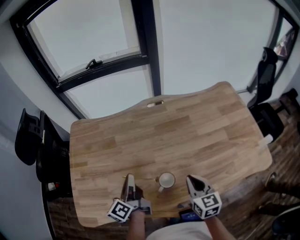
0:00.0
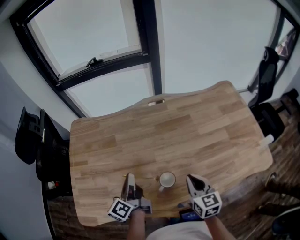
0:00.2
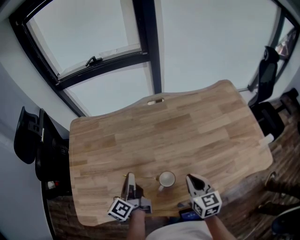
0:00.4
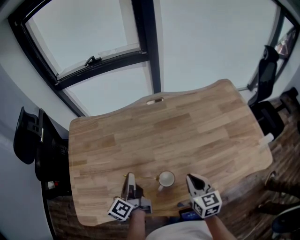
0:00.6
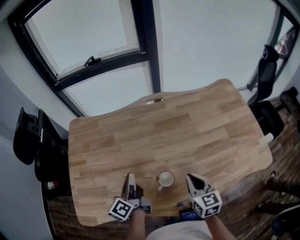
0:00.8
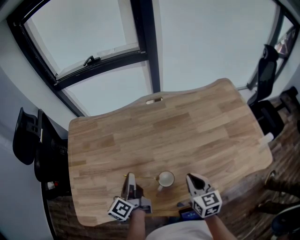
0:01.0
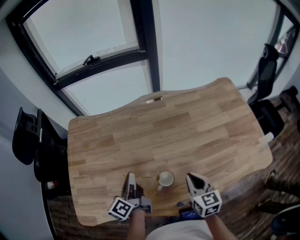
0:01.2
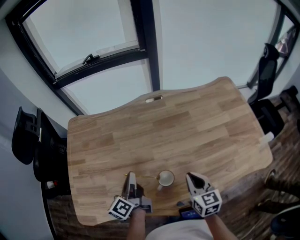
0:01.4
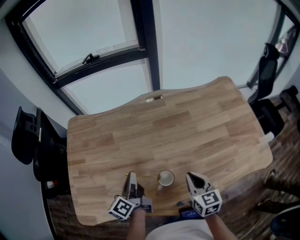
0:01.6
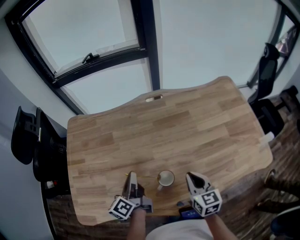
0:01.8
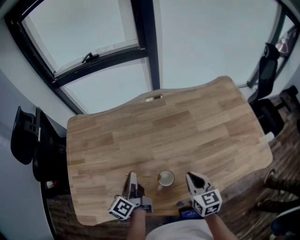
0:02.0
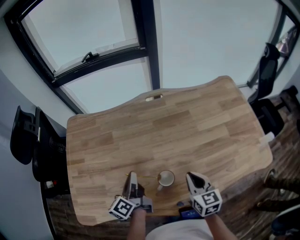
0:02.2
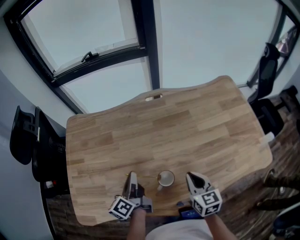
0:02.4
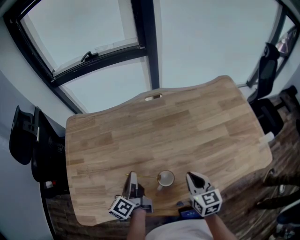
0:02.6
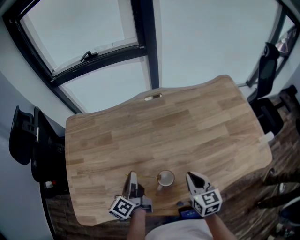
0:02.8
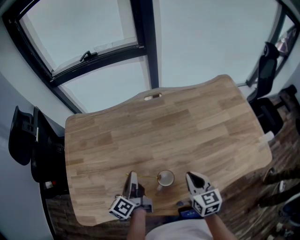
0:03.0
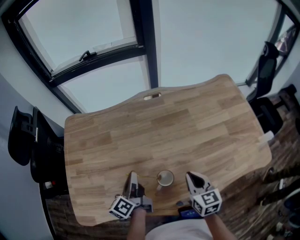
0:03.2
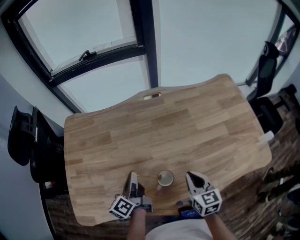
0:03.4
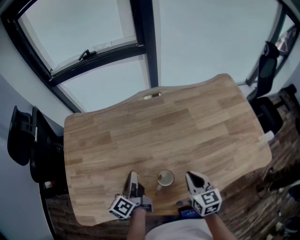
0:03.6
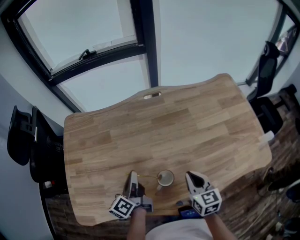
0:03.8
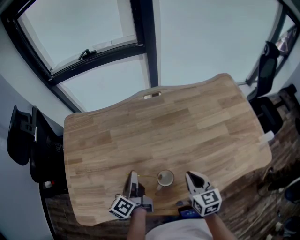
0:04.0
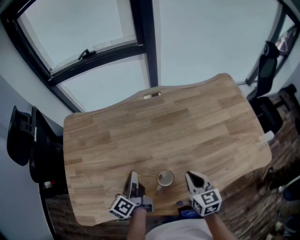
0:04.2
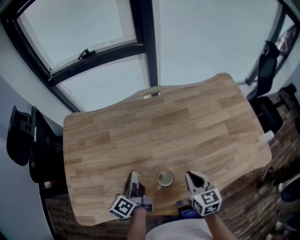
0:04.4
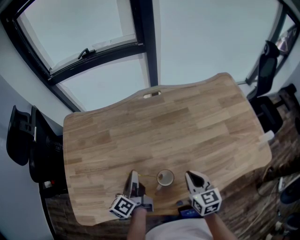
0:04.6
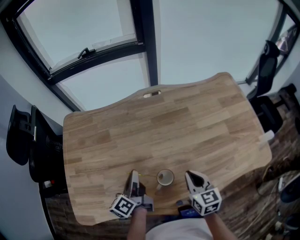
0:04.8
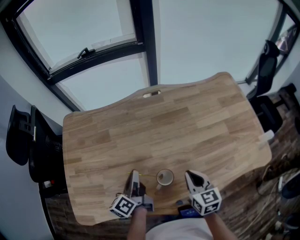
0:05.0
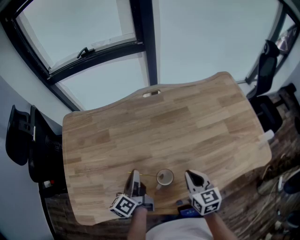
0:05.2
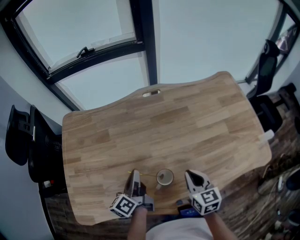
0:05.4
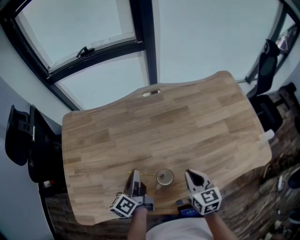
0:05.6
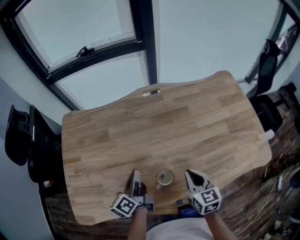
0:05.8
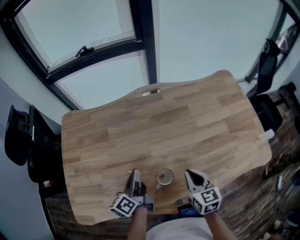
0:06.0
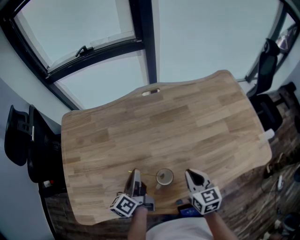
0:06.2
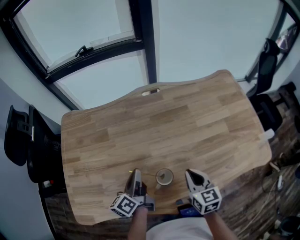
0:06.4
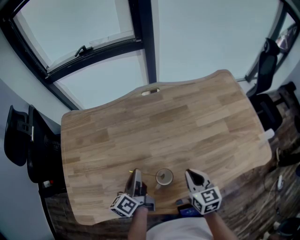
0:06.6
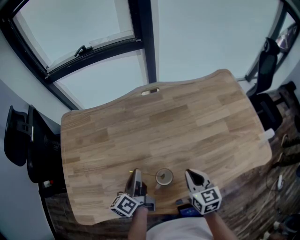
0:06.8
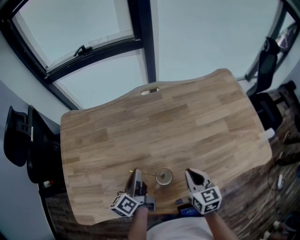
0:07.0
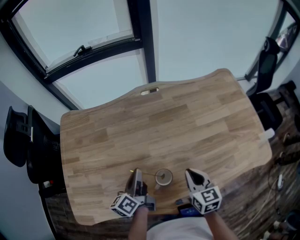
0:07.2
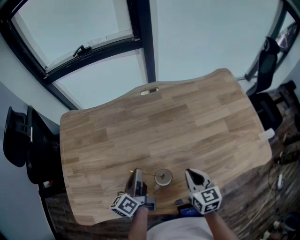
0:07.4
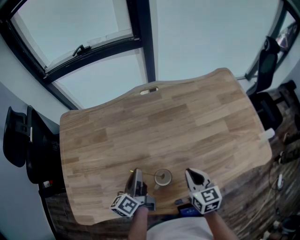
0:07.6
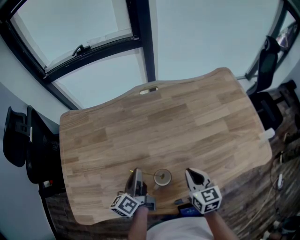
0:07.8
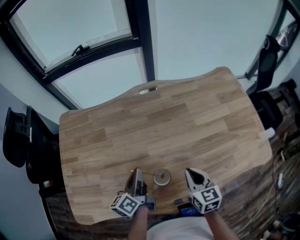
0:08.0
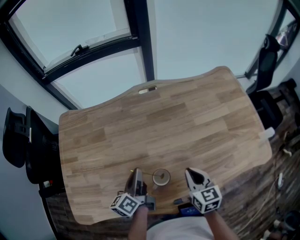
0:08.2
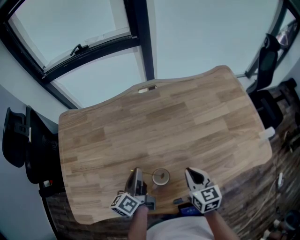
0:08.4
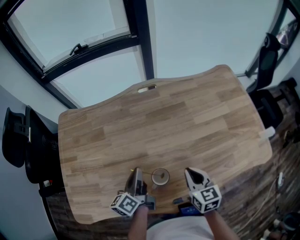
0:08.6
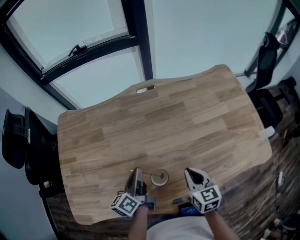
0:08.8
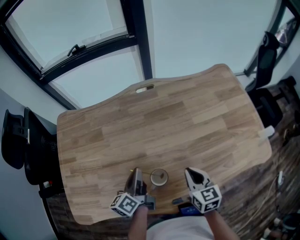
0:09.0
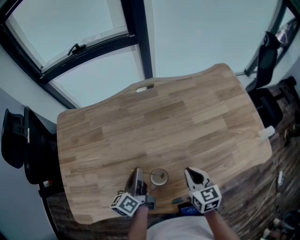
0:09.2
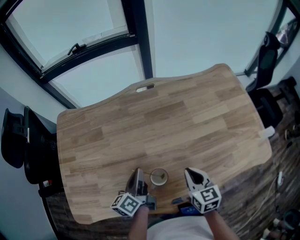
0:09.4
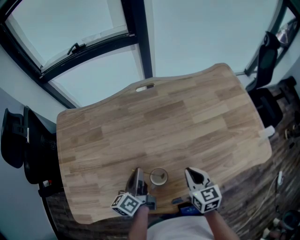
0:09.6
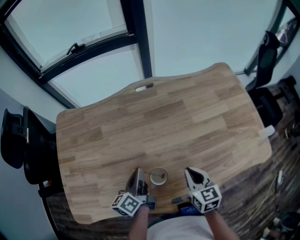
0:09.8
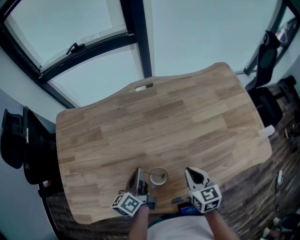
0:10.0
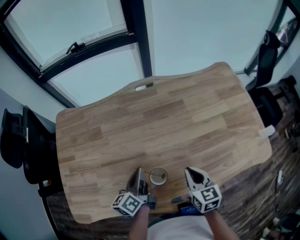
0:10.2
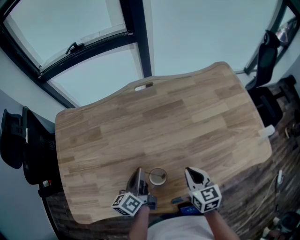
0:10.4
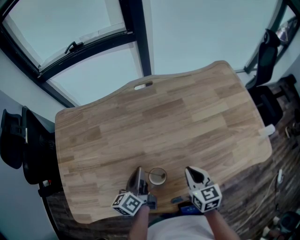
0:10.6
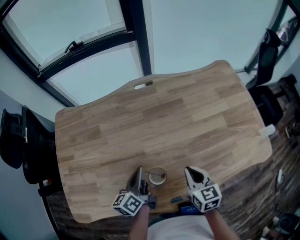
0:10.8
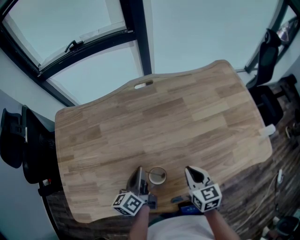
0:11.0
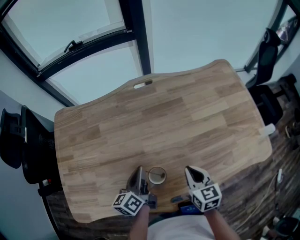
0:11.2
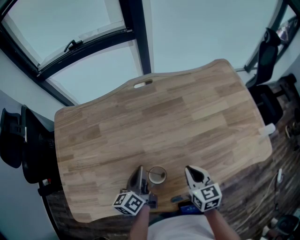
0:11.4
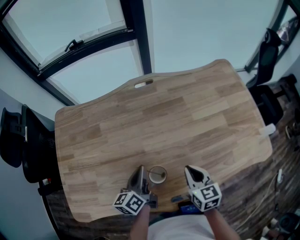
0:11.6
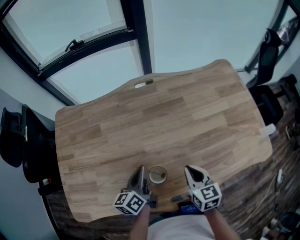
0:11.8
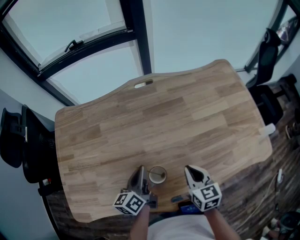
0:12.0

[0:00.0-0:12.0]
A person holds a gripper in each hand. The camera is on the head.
0:00.0 to 0:03.0: The grippers move only a little.
0:03.0 to 0:04.4: Both grippers stay about where they are.
0:04.4 to 0:09.0: The grippers make only small movements.
0:09.0 to 0:12.0: There are only small adjustments of the grippers.

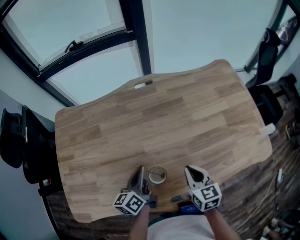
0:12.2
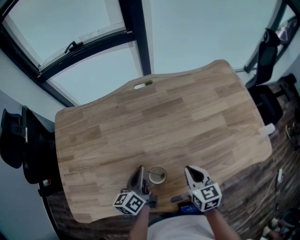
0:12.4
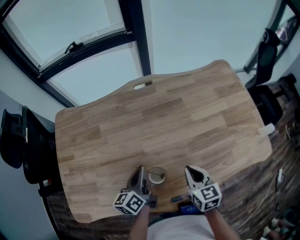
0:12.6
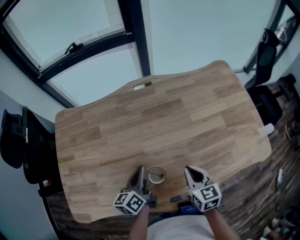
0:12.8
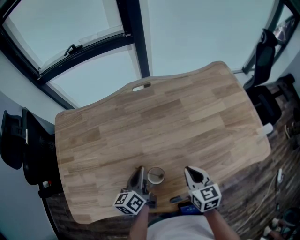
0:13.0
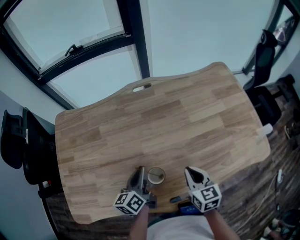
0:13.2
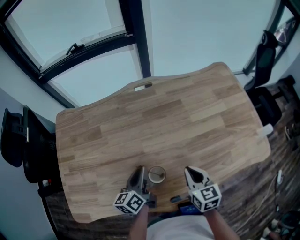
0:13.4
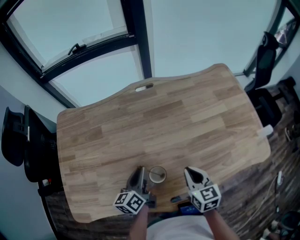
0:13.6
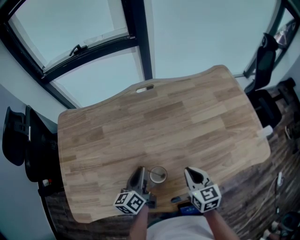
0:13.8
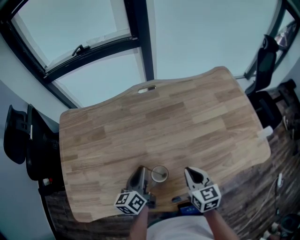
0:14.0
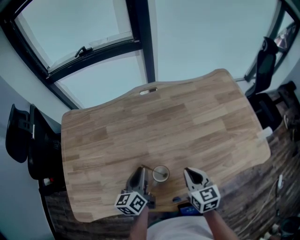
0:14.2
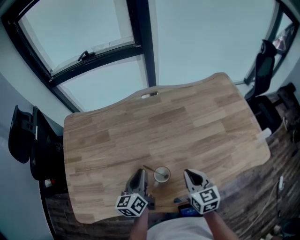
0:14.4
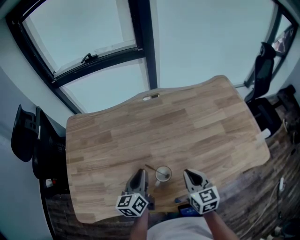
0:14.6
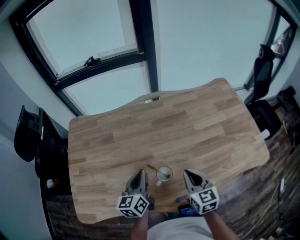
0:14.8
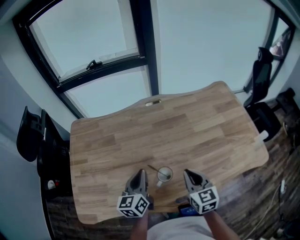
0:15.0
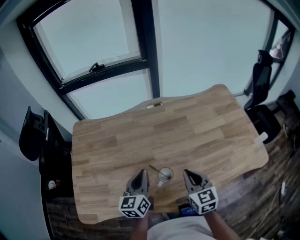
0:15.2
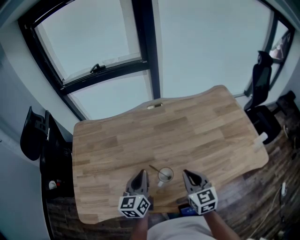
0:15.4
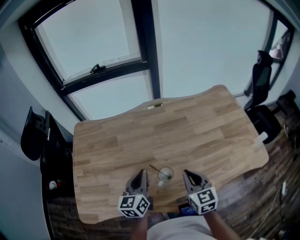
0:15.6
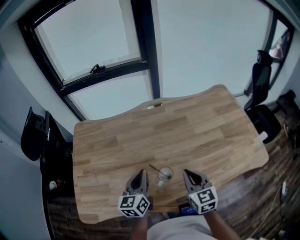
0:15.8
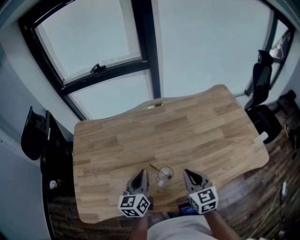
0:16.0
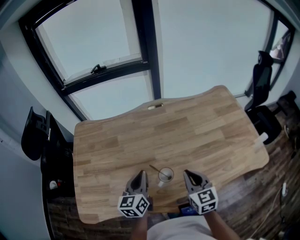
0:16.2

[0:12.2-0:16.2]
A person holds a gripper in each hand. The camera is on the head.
0:12.2 to 0:13.6: Both grippers stay put.
0:13.6 to 0:14.8: The left gripper moves upward, some 5 cm, while the right gripper shifts by about 5 cm.
0:14.8 to 0:16.2: There are only small adjustments of the grippers.

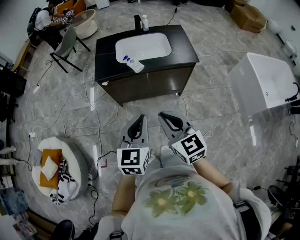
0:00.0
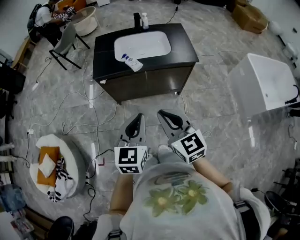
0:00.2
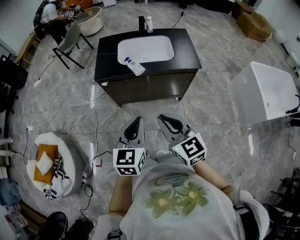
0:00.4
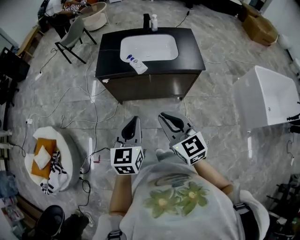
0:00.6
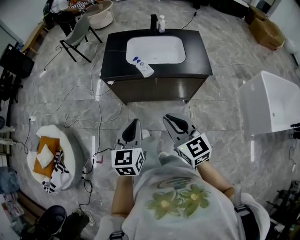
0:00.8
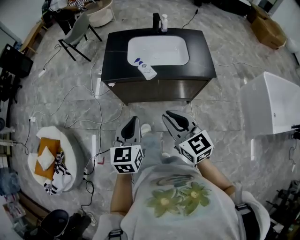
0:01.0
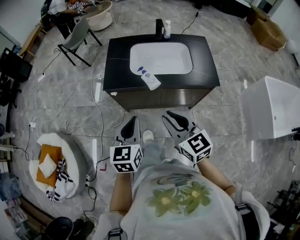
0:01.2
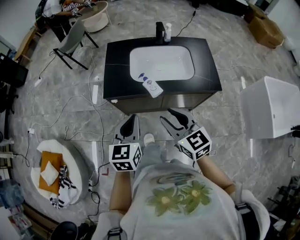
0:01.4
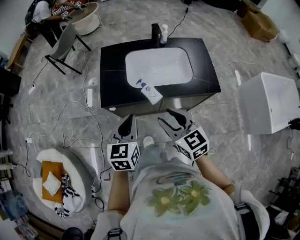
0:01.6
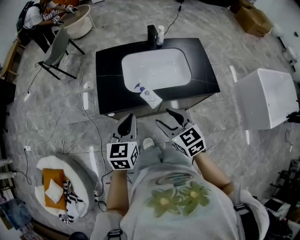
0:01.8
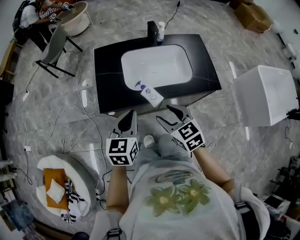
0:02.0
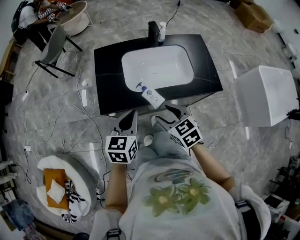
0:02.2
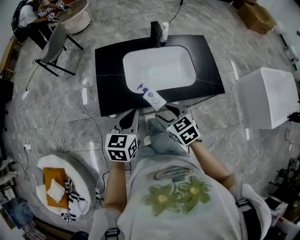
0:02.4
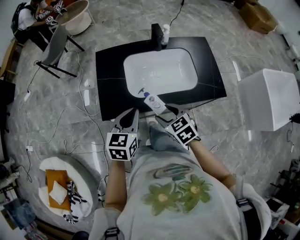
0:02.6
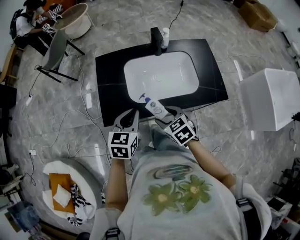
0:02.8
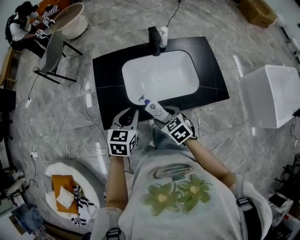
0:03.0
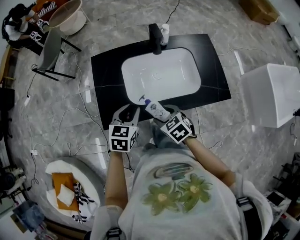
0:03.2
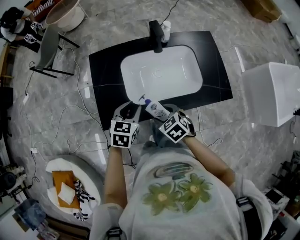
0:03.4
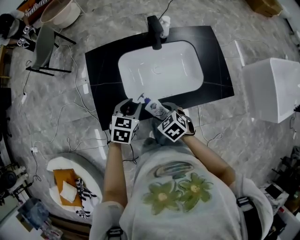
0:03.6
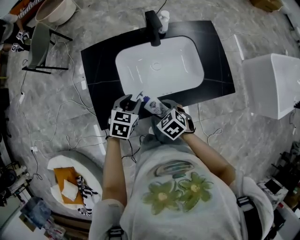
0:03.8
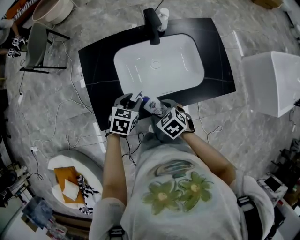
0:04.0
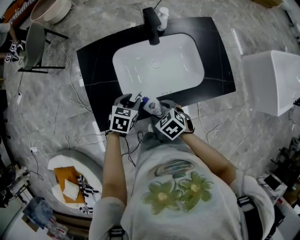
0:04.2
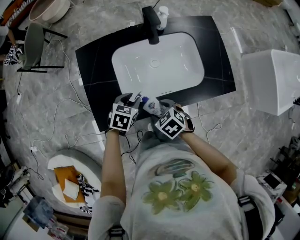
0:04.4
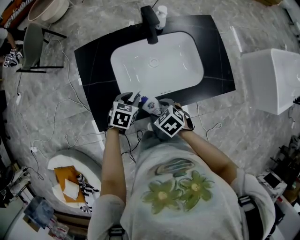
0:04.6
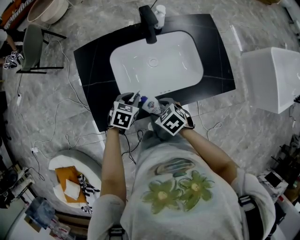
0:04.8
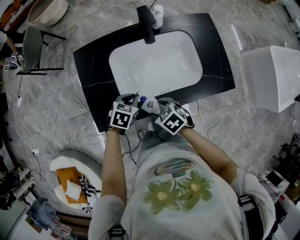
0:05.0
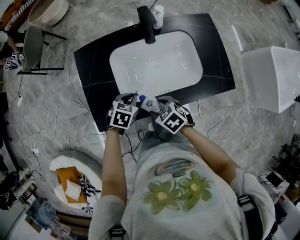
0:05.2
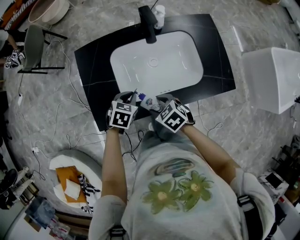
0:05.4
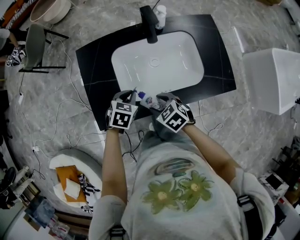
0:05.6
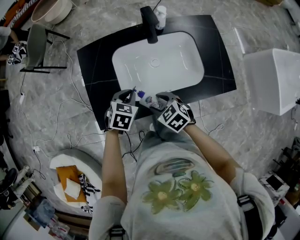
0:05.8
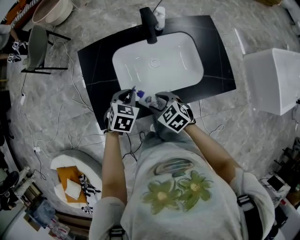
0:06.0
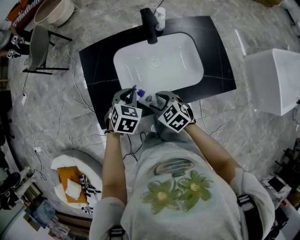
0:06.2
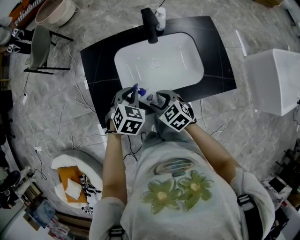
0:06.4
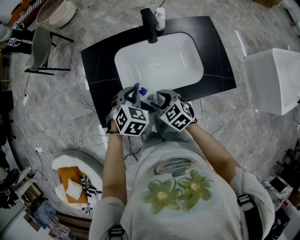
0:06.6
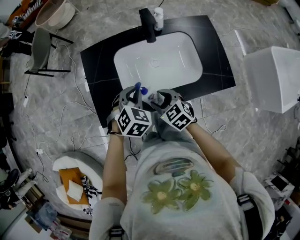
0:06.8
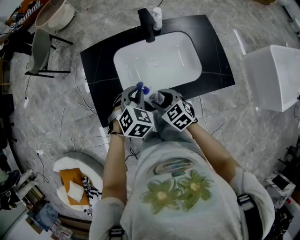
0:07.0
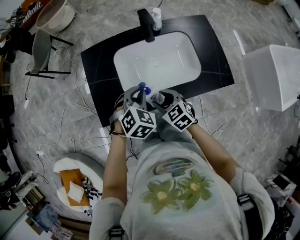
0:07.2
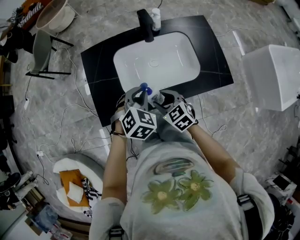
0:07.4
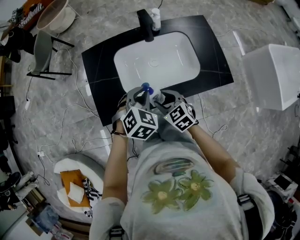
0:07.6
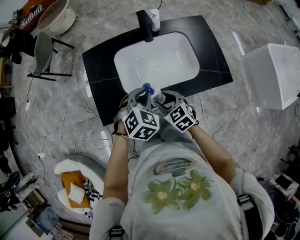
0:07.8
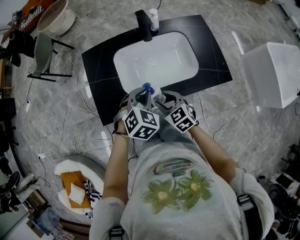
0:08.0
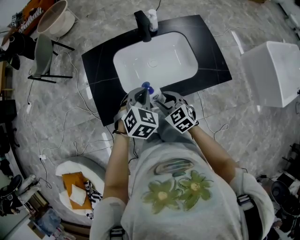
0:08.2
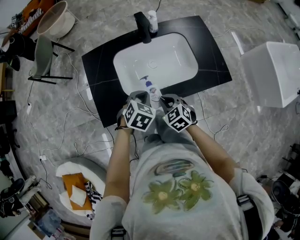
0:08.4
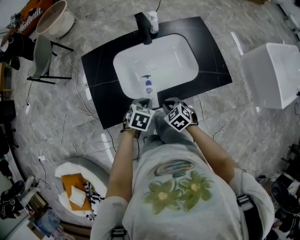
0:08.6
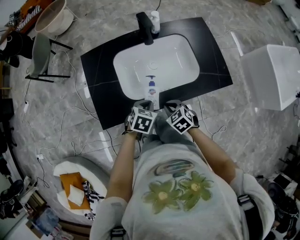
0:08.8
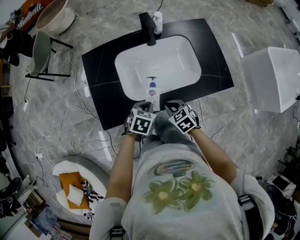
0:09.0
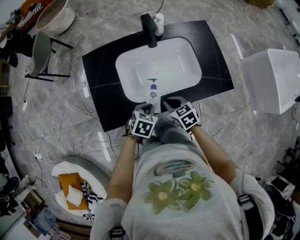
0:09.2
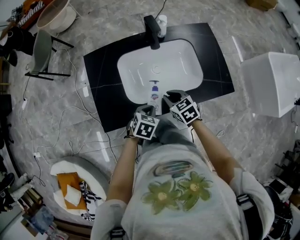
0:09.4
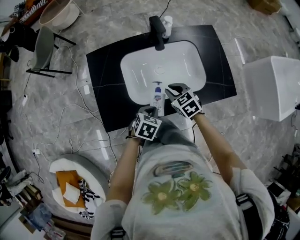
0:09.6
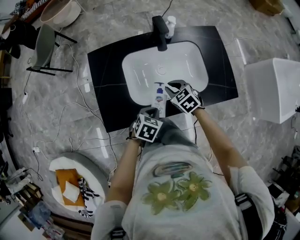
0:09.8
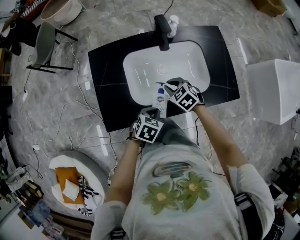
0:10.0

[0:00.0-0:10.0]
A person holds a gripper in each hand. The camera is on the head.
0:00.0 to 0:01.4: Both grippers travel together forward, roughly 30 cm. The right gripper opens its fingers.
0:01.4 to 0:02.8: The right gripper goes some 25 cm forward and downward, swivels about 30 degrees, and opens its fingers; the left gripper heads forward, covering approximately 25 cm.
0:02.8 to 0:04.2: The left gripper heads downward and forward, covering approximately 20 cm, rotates approximately 30 degrees, and opens. Meanwhile the right gripper heads downward and forward, covering roughly 15 cm.
0:04.2 to 0:05.8: The left gripper closes up.
0:05.8 to 0:07.2: The left gripper shifts about 10 cm upward, and swivels roughly 30 degrees.
0:07.2 to 0:08.6: The right gripper goes about 5 cm downward, and closes up, while the left gripper heads downward and backward, covering roughly 10 cm, and changes its angle by about 30 degrees.
0:08.6 to 0:10.0: The right gripper is displaced forward by some 15 cm.
